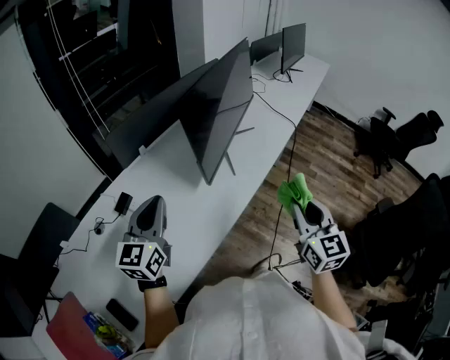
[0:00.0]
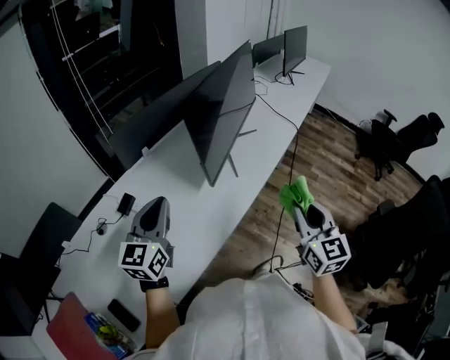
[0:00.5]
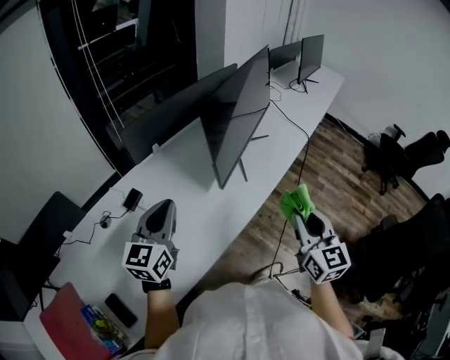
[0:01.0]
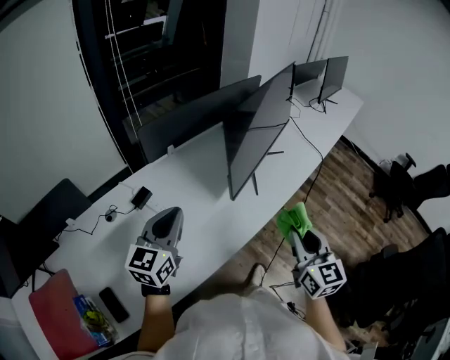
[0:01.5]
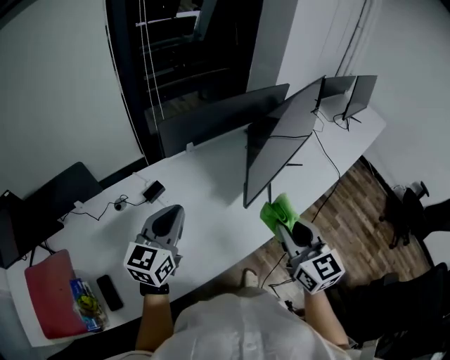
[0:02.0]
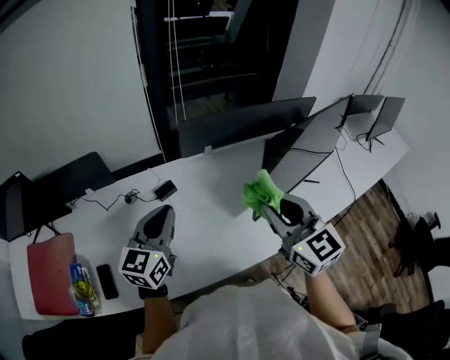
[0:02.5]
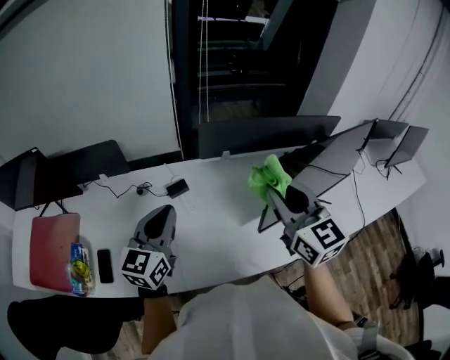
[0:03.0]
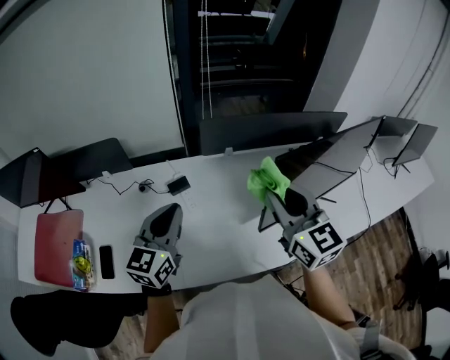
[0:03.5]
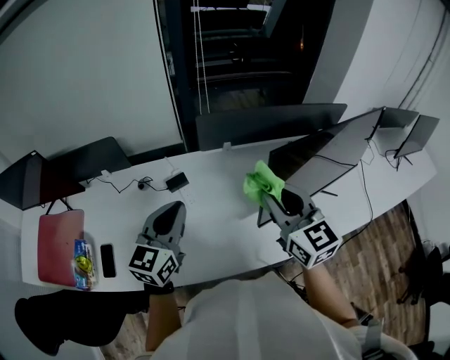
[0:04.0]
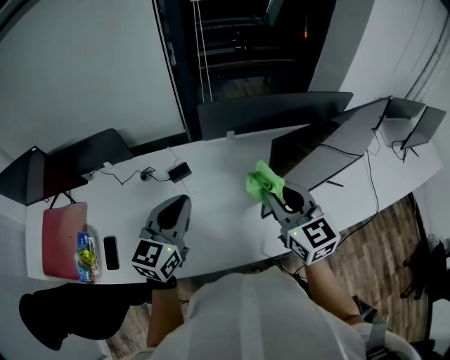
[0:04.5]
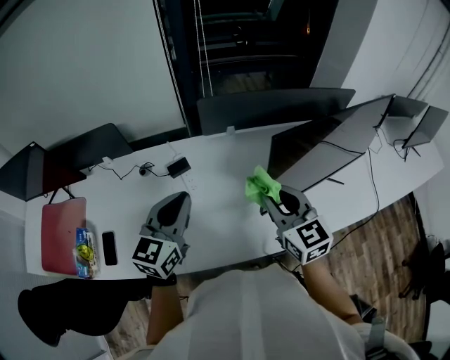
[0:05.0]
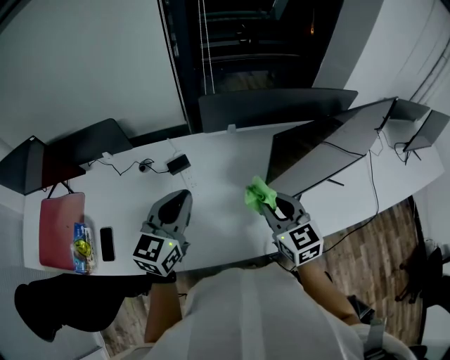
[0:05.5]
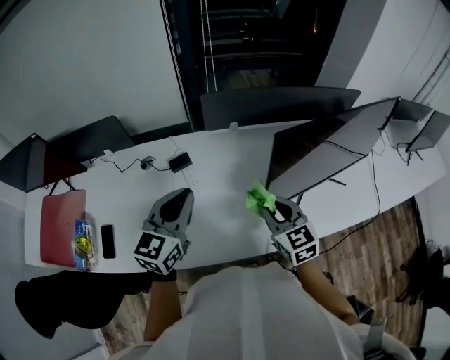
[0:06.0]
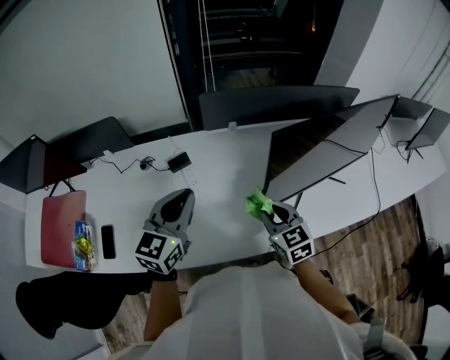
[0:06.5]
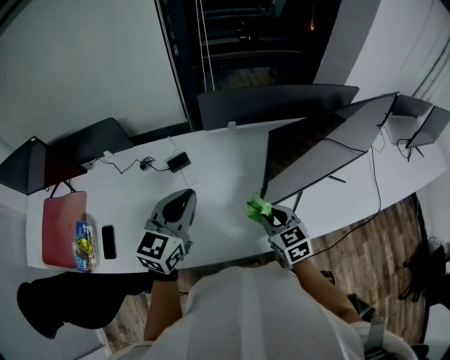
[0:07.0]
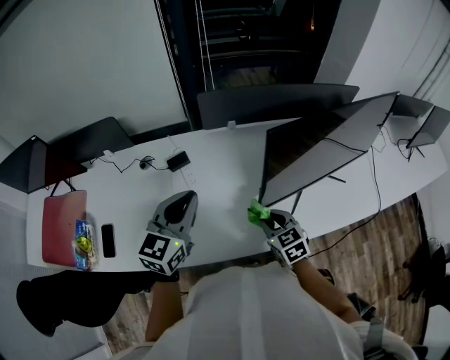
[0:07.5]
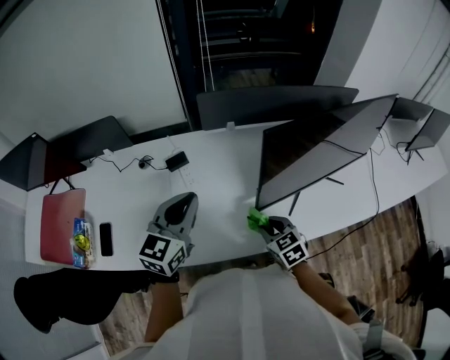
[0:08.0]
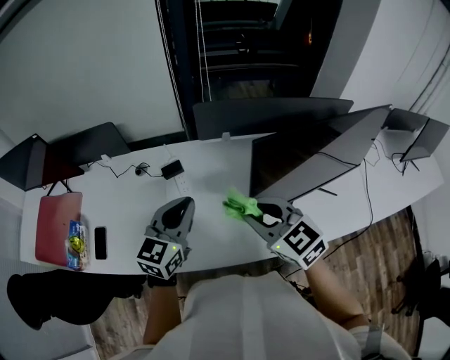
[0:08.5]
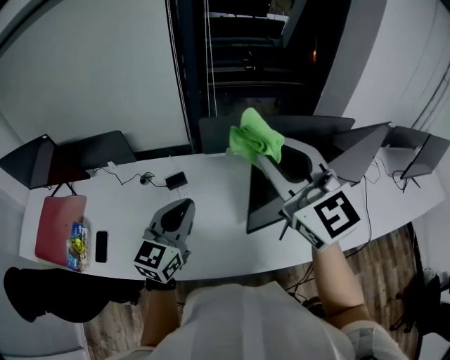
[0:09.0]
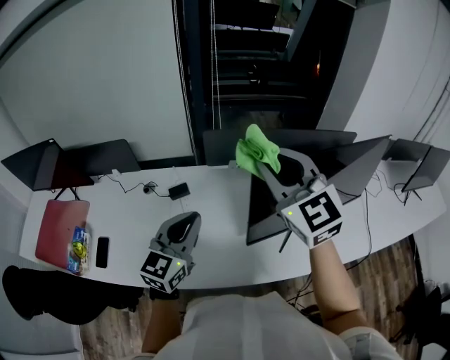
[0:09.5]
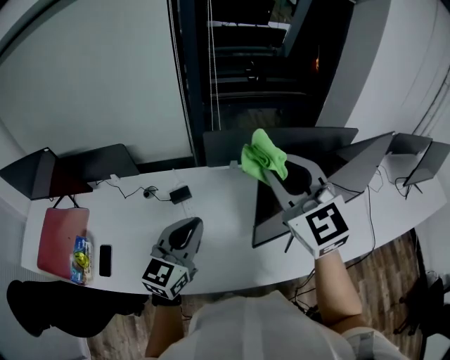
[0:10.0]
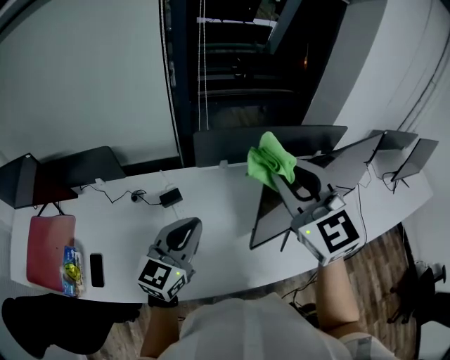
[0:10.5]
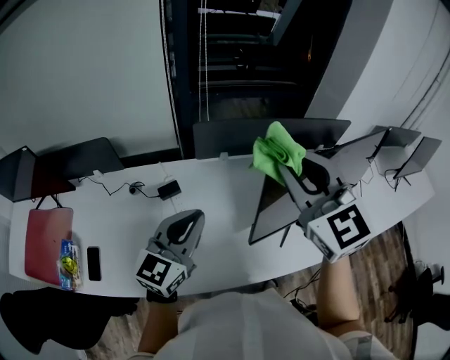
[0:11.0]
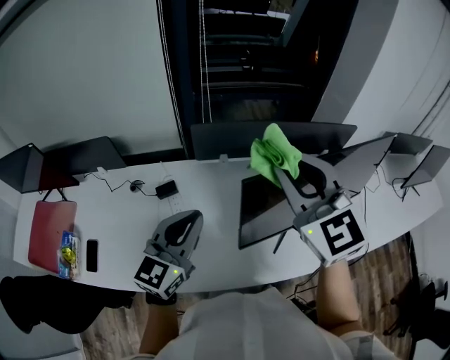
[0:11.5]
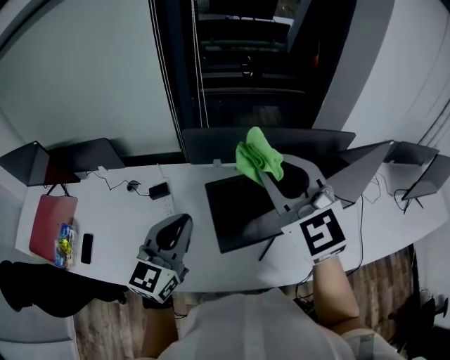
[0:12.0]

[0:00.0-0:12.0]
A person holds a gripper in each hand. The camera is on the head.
0:00.0 to 0:02.0: The left gripper travels to the left by some 5 cm. The right gripper is displaced to the left and forward by some 15 cm, and swivels some 30 degrees.
0:02.0 to 0:04.0: The left gripper swivels approximately 20 degrees. The right gripper goes about 15 cm forward, and turns by approximately 30 degrees.
0:04.0 to 0:06.0: The right gripper goes about 15 cm downward.
0:06.0 to 0:08.0: The right gripper is displaced downward by roughly 10 cm.
0:08.0 to 0:10.0: The right gripper is displaced upward by roughly 40 cm, and tilts its fingers about 40 degrees upward.
0:10.0 to 0:12.0: The grippers both shift to the right by some 10 cm.

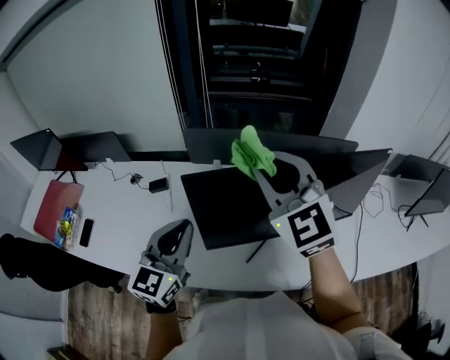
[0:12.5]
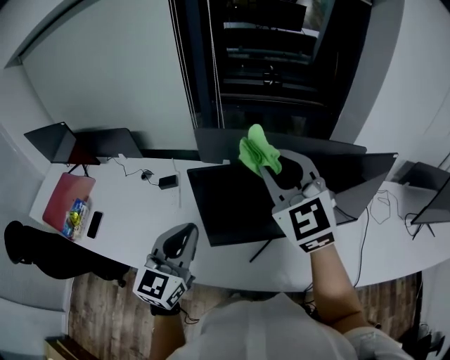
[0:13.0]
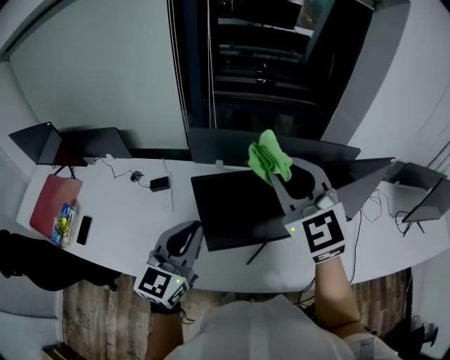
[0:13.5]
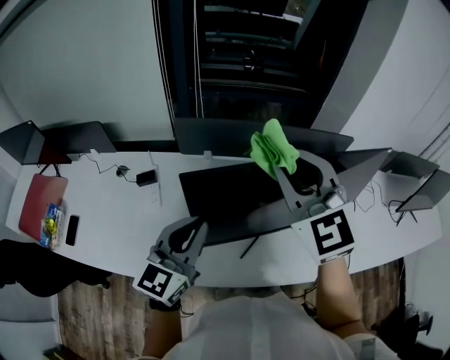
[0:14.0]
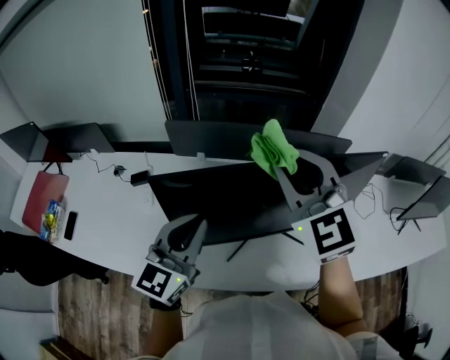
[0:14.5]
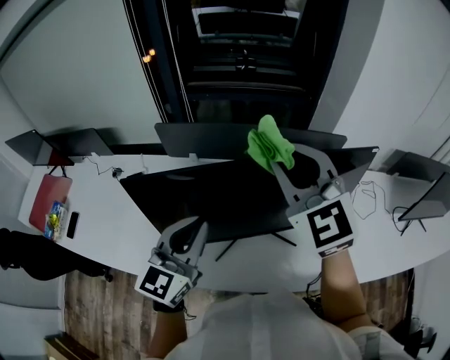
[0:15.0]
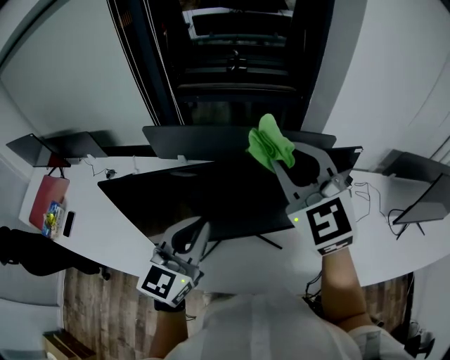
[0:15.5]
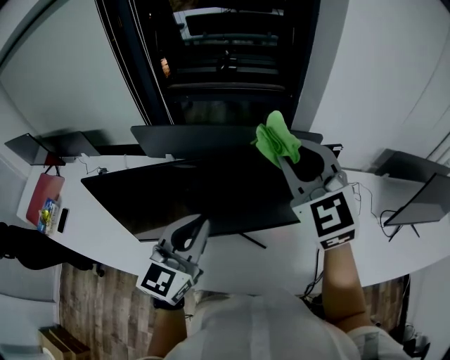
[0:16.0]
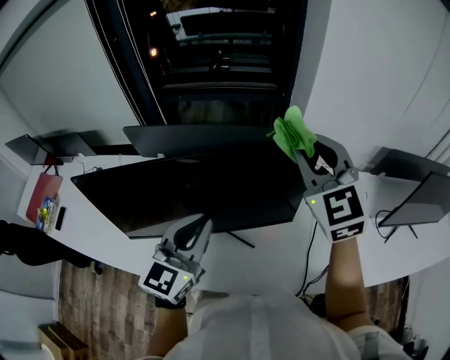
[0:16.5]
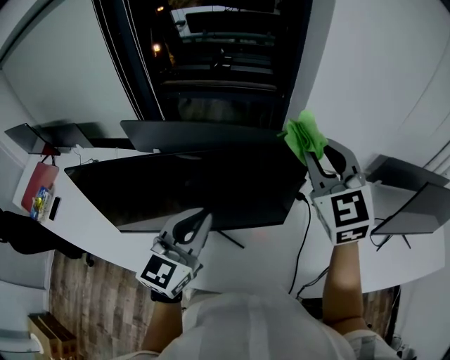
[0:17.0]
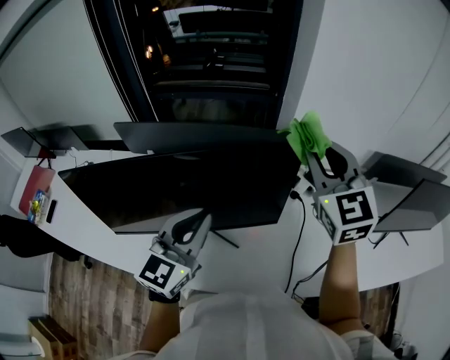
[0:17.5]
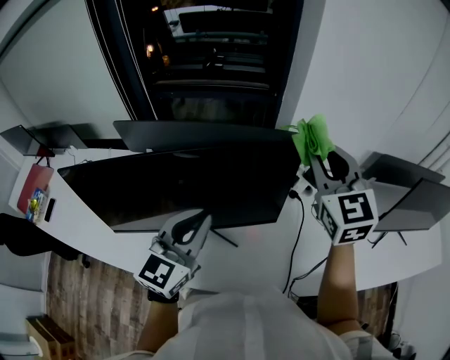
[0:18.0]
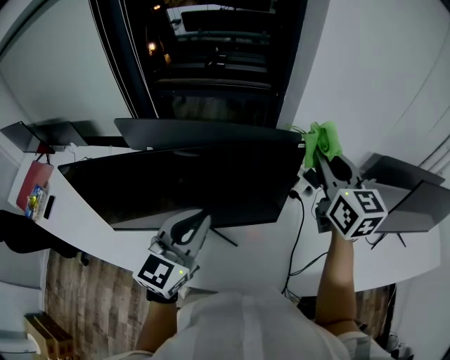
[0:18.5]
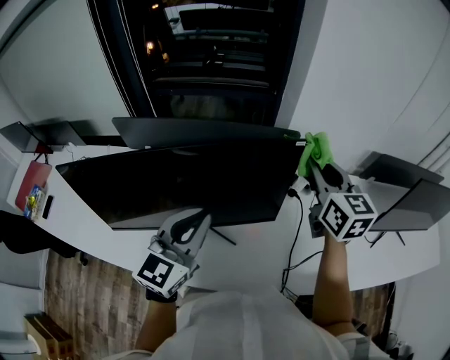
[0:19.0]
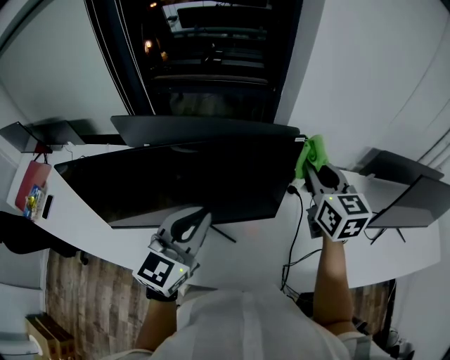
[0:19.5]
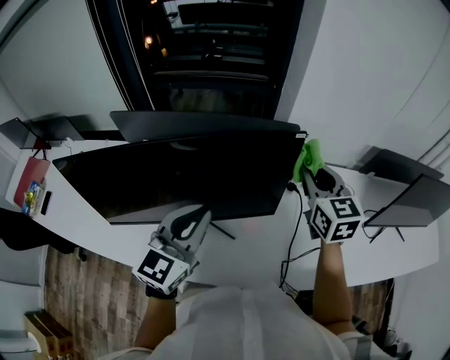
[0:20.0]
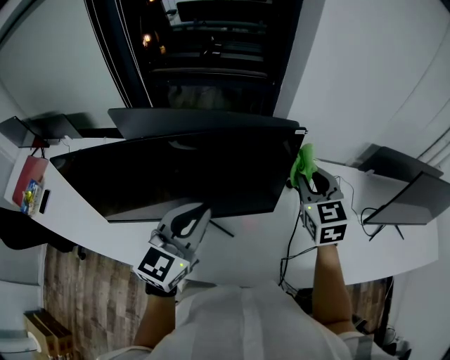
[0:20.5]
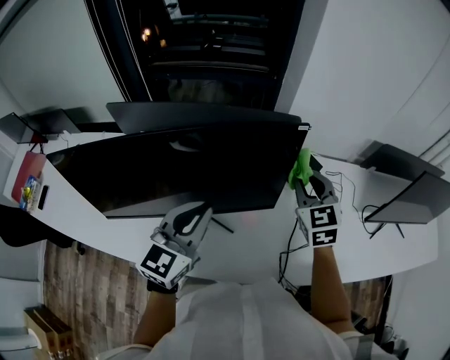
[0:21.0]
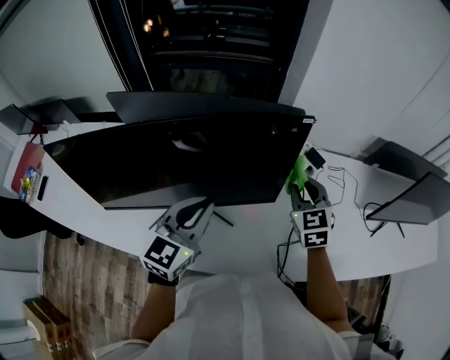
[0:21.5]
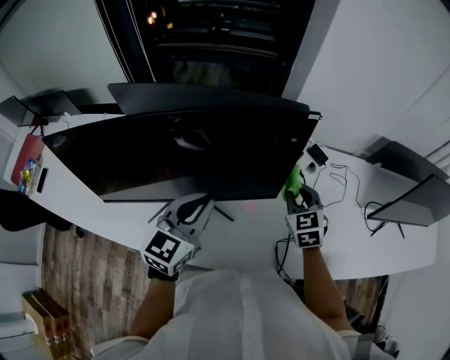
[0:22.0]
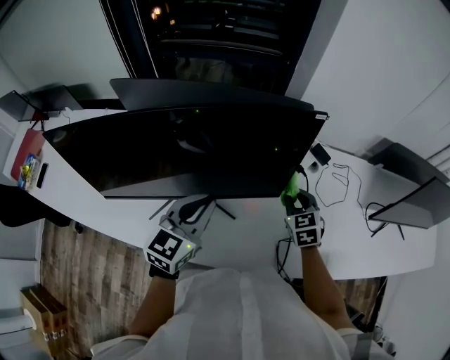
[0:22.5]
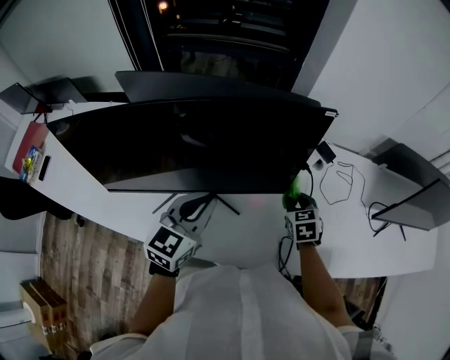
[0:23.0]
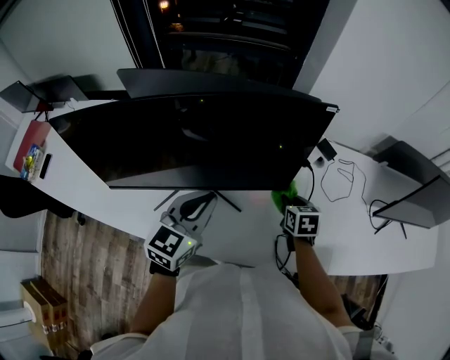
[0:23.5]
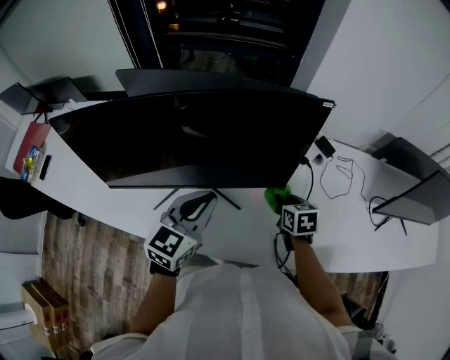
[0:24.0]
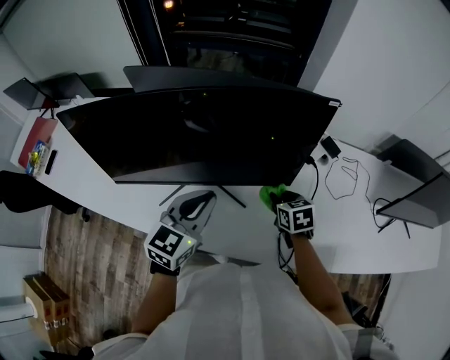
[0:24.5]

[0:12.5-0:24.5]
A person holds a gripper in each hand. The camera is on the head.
0:12.5 to 0:14.5: The two grippers go approximately 10 cm to the right.
0:14.5 to 0:16.5: Both grippers travel together to the right, about 30 cm.
0:16.5 to 0:18.5: The right gripper shifts about 10 cm to the right, and swivels about 30 degrees.
0:18.5 to 0:20.5: The right gripper goes about 10 cm downward, and swivels approximately 20 degrees.
0:20.5 to 0:22.5: The left gripper is displaced downward by approximately 10 cm. Meanwhile the right gripper shifts approximately 20 cm downward.
0:22.5 to 0:24.5: The right gripper travels to the left by about 5 cm, and turns by some 30 degrees.

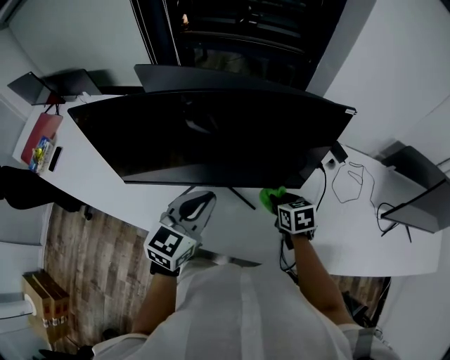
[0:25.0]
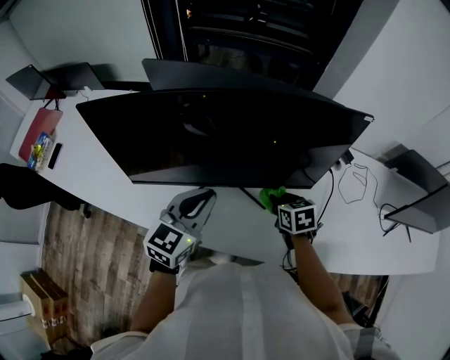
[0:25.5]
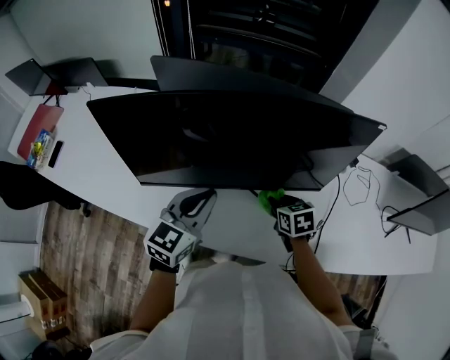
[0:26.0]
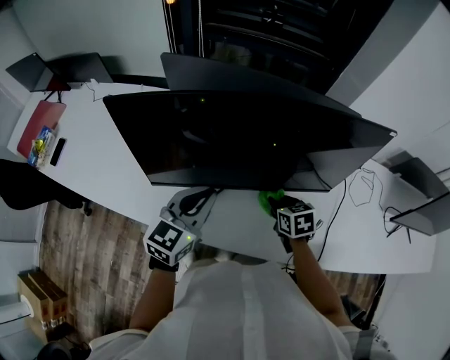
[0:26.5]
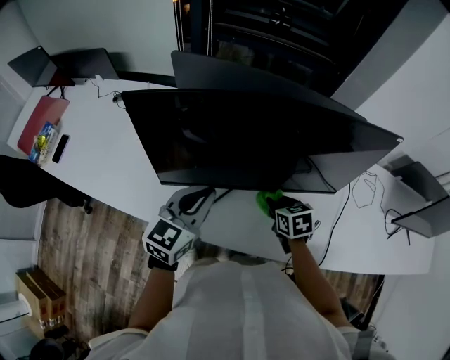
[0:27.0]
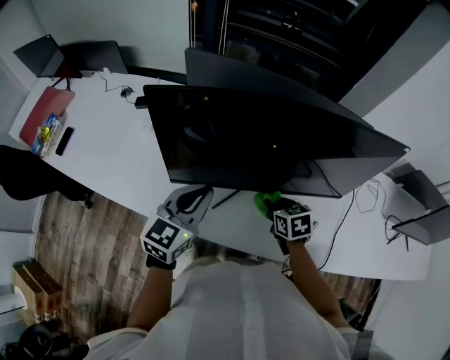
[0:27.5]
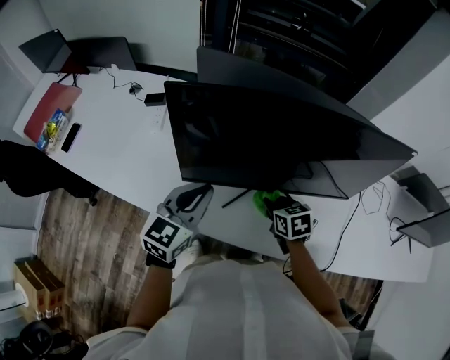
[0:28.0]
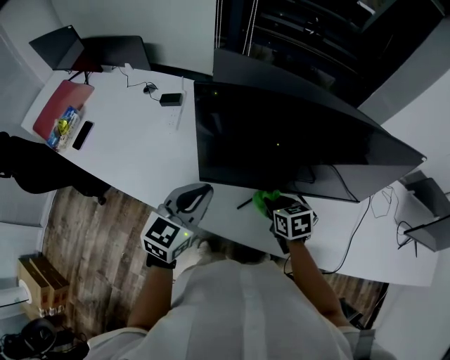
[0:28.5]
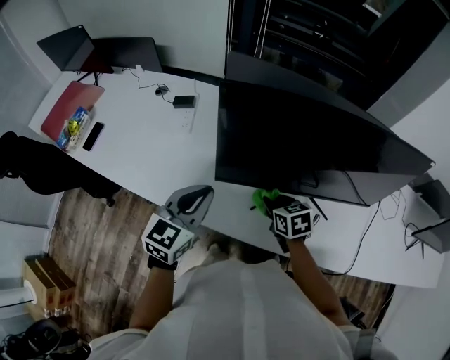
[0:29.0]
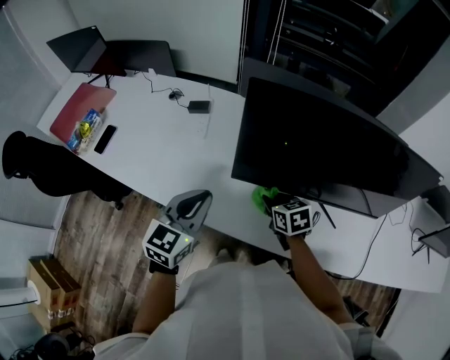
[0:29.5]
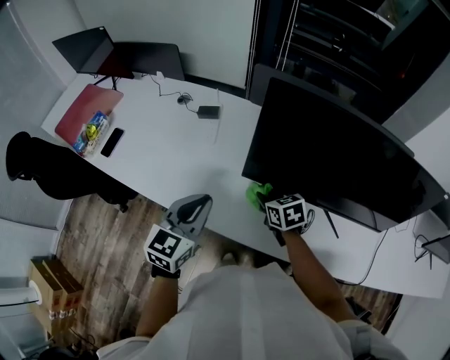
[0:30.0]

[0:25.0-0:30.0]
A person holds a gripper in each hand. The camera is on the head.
0:25.0 to 0:27.5: The two grippers go about 20 cm to the left.
0:27.5 to 0:30.0: The grippers both shift to the left by some 25 cm.
